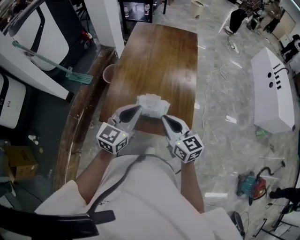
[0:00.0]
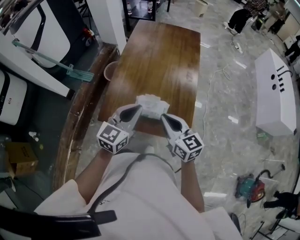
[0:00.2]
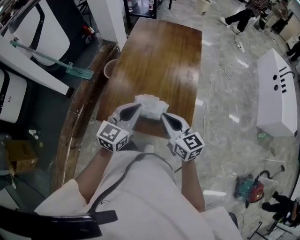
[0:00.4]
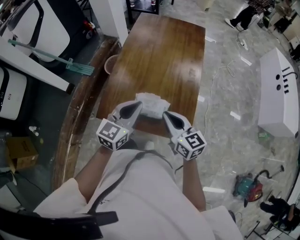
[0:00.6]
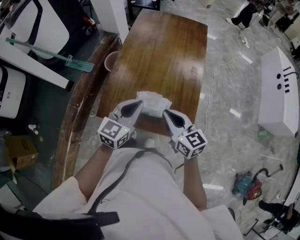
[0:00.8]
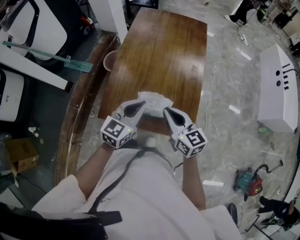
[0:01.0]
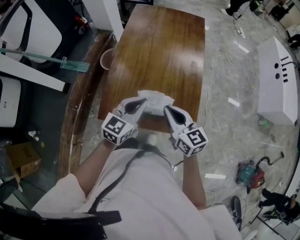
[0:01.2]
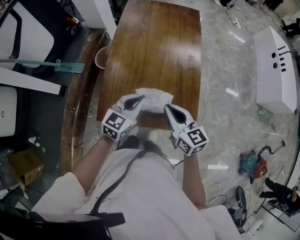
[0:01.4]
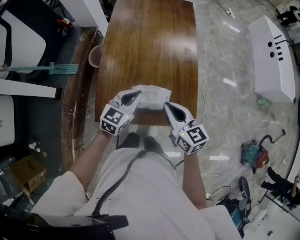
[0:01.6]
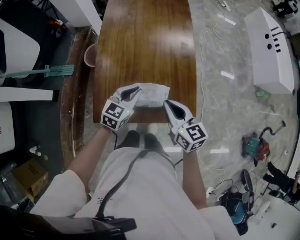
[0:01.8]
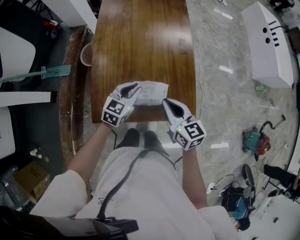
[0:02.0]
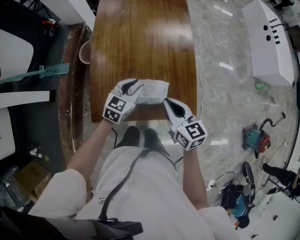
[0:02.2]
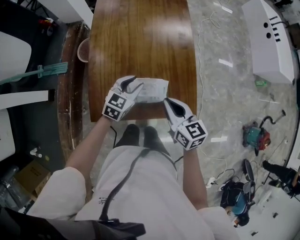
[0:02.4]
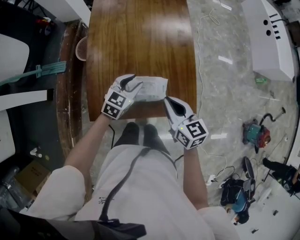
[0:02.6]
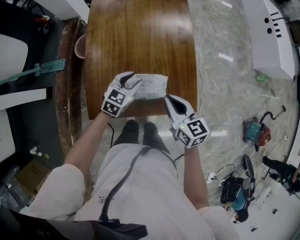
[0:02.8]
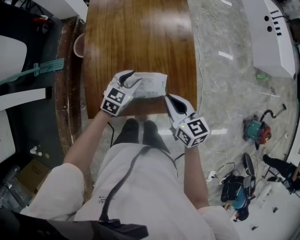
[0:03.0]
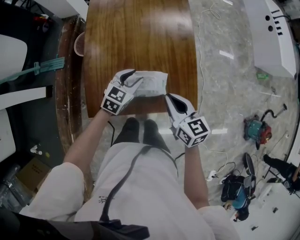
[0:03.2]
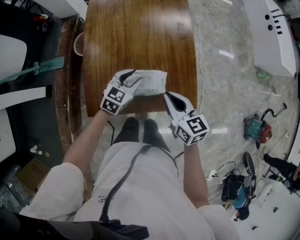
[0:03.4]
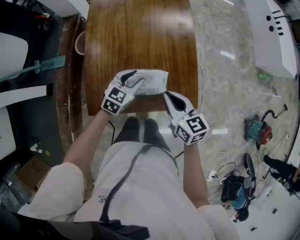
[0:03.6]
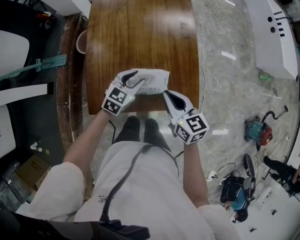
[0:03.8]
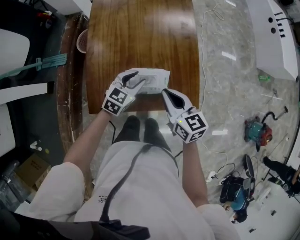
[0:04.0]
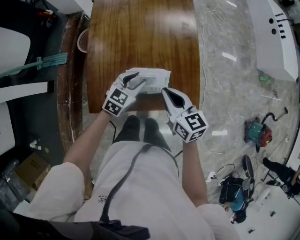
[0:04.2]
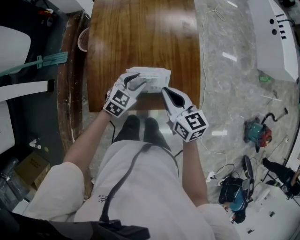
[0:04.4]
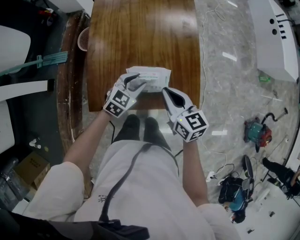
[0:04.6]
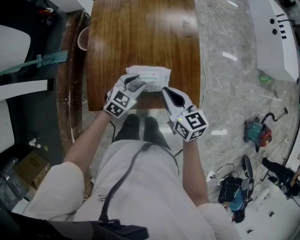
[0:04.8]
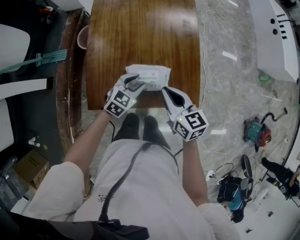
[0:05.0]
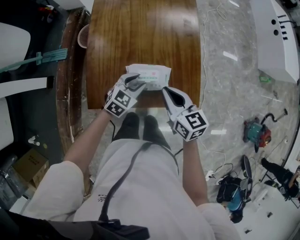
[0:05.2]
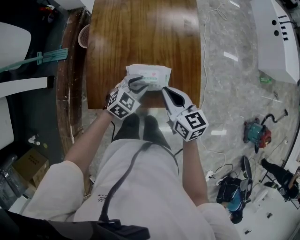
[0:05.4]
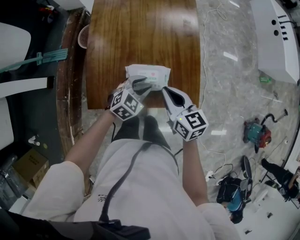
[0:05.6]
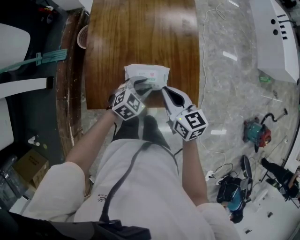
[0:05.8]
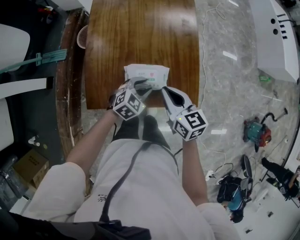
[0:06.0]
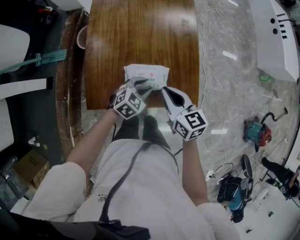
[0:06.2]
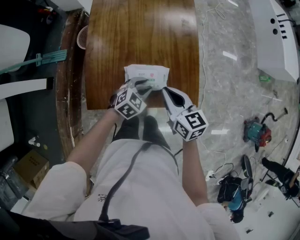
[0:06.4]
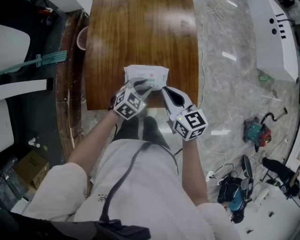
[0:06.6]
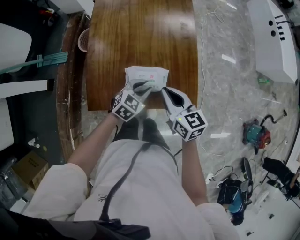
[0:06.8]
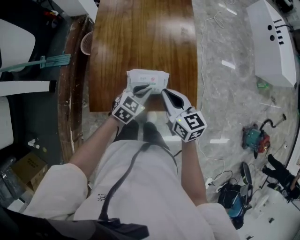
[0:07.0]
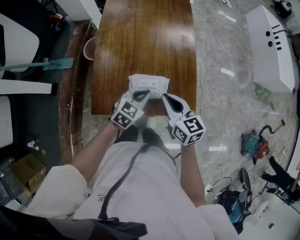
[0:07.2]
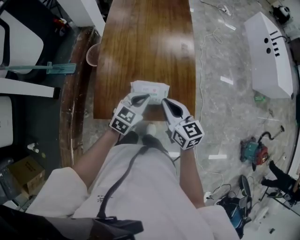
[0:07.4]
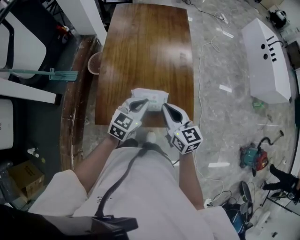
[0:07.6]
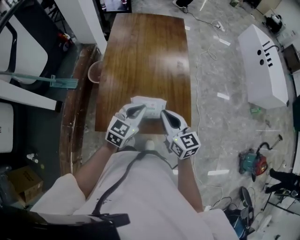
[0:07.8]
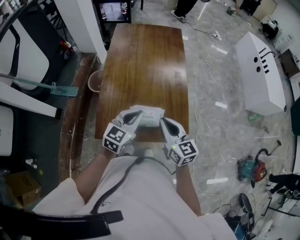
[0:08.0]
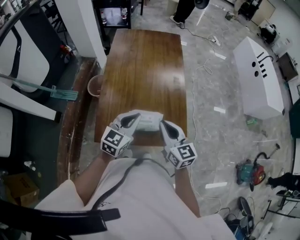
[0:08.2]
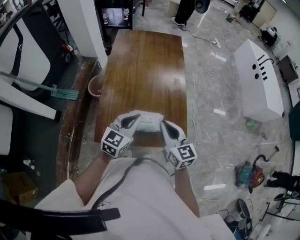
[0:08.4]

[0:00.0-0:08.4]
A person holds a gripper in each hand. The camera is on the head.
0:00.0 to 0:01.4: The left gripper travels forward and downward by approximately 15 cm. The right gripper goes about 10 cm forward.
0:01.4 to 0:02.8: The right gripper is displaced downward by approximately 5 cm. The left gripper shifts some 15 cm downward and forward, and opens up.
0:02.8 to 0:04.2: There are only small adjustments of the grippers.
0:04.2 to 0:05.6: The left gripper shifts by some 5 cm.
0:05.6 to 0:07.0: The left gripper closes up.
0:07.0 to 0:08.4: The left gripper heads upward, covering approximately 20 cm, and swivels roughly 20 degrees, while the right gripper shifts some 10 cm upward.

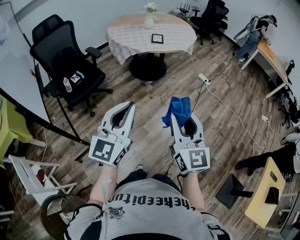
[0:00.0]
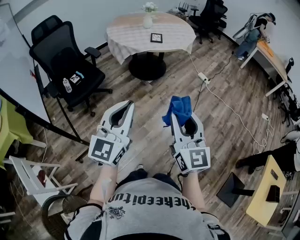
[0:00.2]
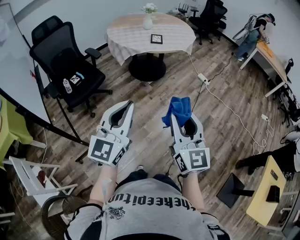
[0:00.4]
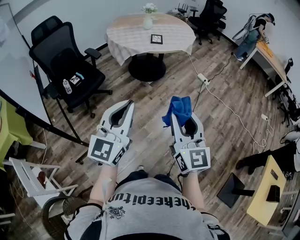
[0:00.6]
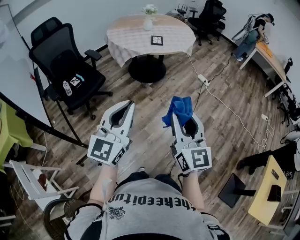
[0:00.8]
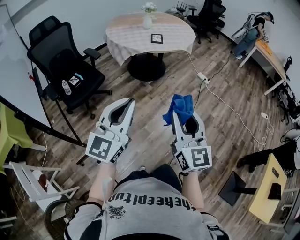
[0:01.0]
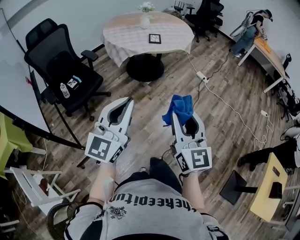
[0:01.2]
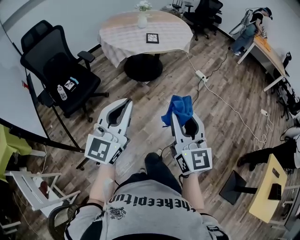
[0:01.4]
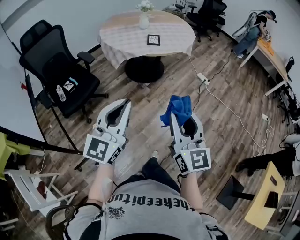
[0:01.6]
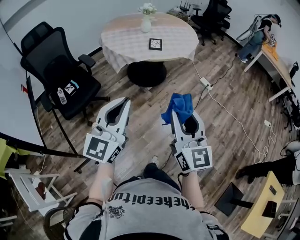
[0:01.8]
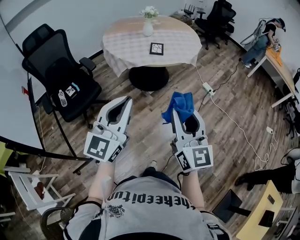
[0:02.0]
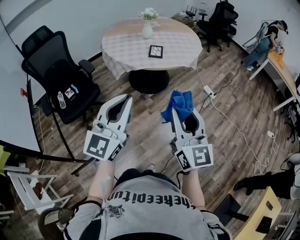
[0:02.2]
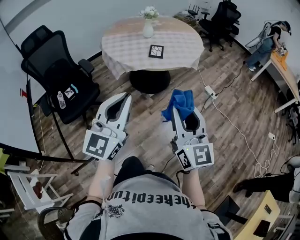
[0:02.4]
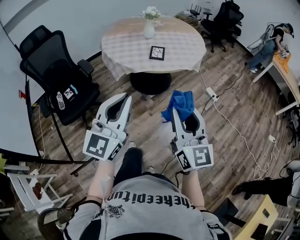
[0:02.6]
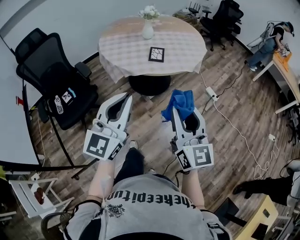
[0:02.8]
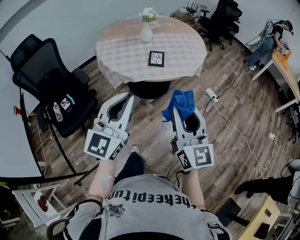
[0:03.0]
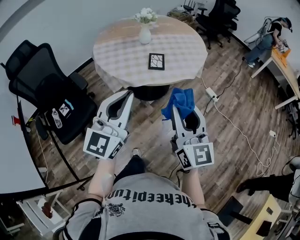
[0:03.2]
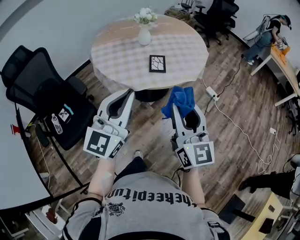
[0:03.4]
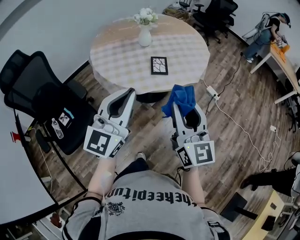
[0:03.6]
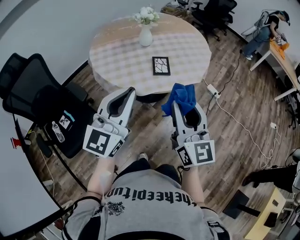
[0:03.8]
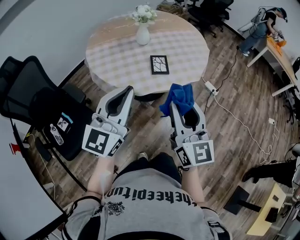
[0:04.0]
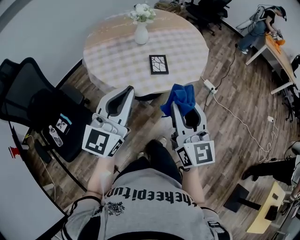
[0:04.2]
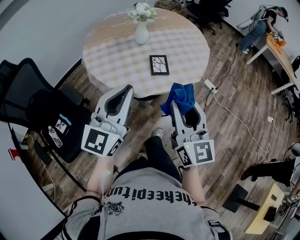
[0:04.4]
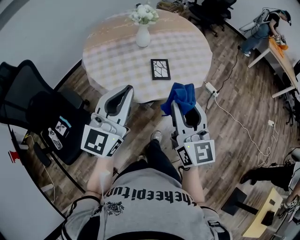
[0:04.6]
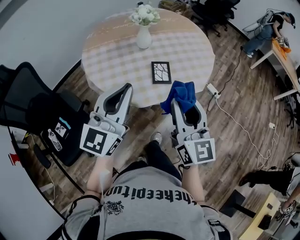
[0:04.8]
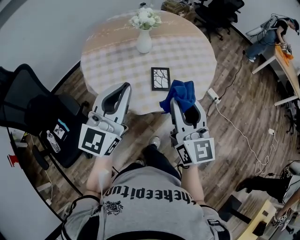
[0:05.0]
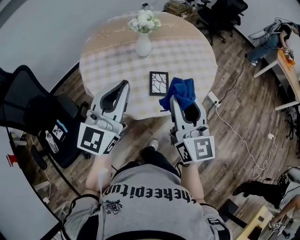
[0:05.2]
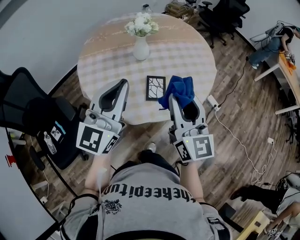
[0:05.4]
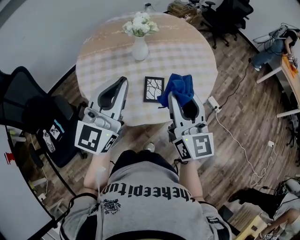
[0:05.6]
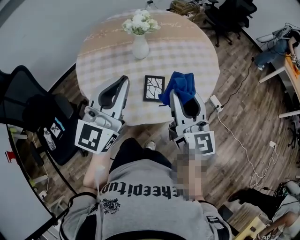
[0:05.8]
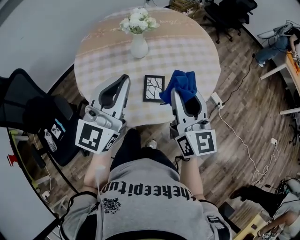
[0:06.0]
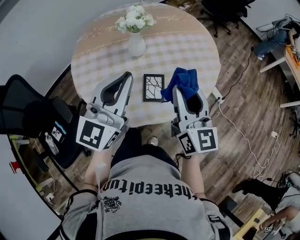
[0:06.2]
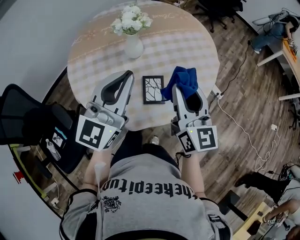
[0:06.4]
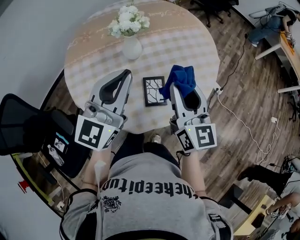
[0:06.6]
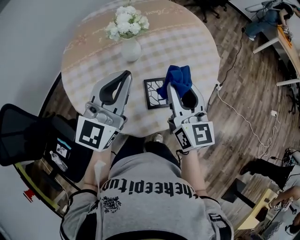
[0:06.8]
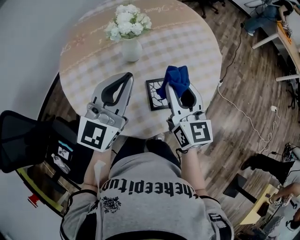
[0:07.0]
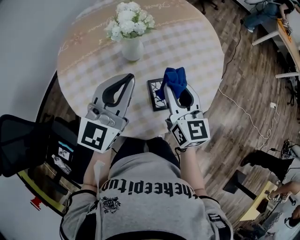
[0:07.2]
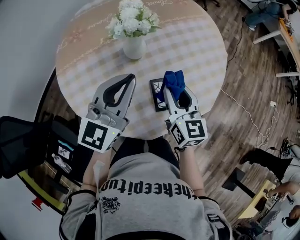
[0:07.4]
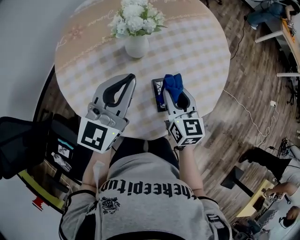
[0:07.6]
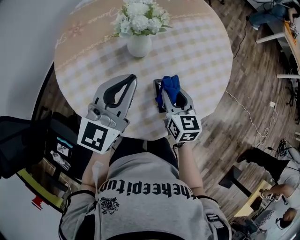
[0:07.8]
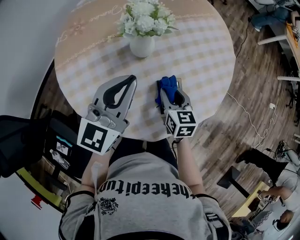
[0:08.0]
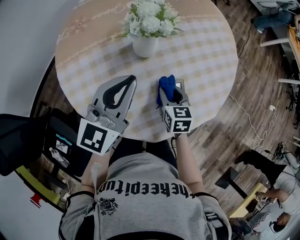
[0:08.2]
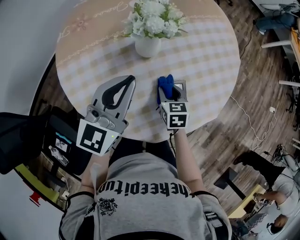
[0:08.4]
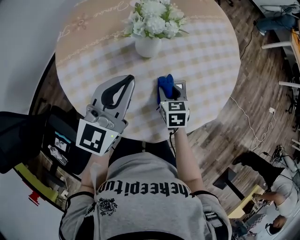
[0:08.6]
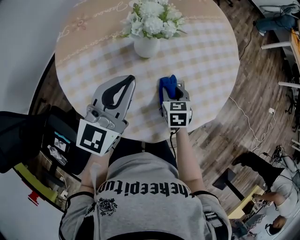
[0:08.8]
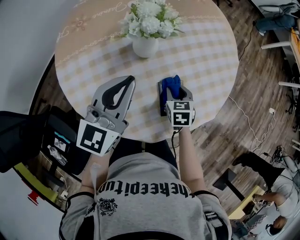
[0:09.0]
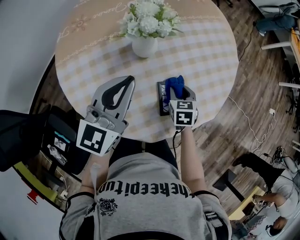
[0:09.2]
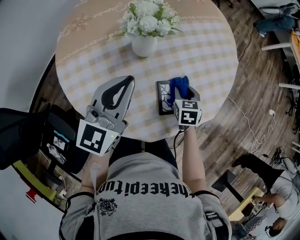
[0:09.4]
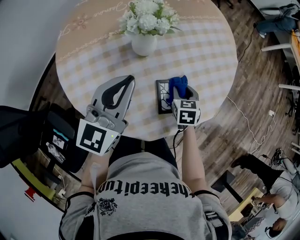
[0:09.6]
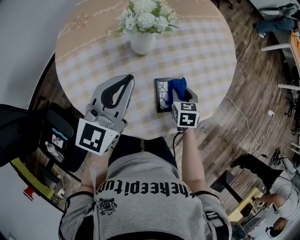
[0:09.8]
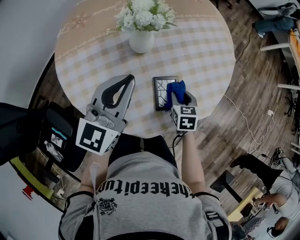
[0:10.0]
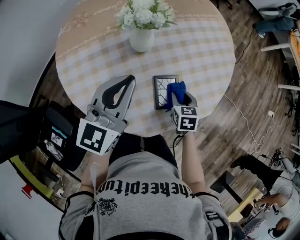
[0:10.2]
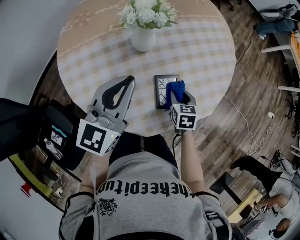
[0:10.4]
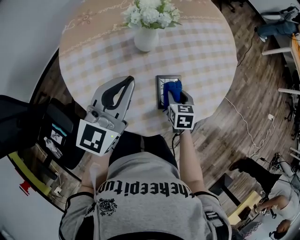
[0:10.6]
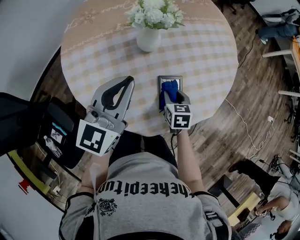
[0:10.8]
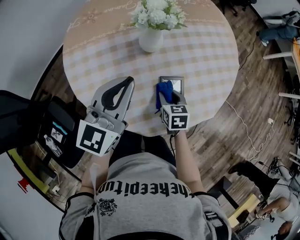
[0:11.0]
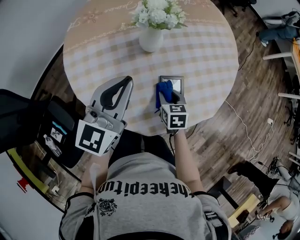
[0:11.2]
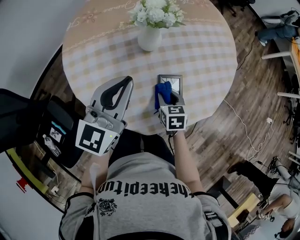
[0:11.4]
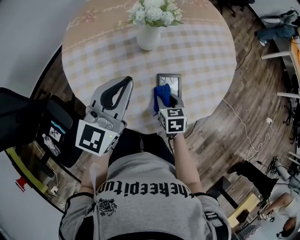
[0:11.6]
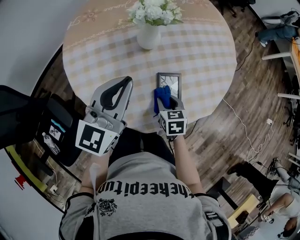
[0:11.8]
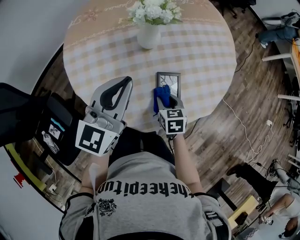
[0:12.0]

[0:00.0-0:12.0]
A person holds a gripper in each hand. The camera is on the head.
0:00.0 to 0:01.6: The two grippers go some 10 cm forward.
0:01.6 to 0:03.0: Both grippers move forward, about 30 cm.
0:03.0 to 0:04.4: The grippers both shift forward and to the left by about 20 cm.
0:04.4 to 0:06.0: Both grippers travel together forward, approximately 25 cm.
0:06.0 to 0:07.6: The right gripper shifts roughly 25 cm downward, forward and to the left, and swivels approximately 30 degrees. The left gripper is displaced forward, downward and to the left by roughly 20 cm, and turns by some 20 degrees.
0:07.6 to 0:09.0: The right gripper is displaced downward by some 15 cm, and angles its fingers downward, by some 30 degrees.
0:09.0 to 0:10.4: The right gripper ends up about 5 cm from where it was.
0:10.4 to 0:12.0: The right gripper moves to the left and backward, approximately 10 cm.

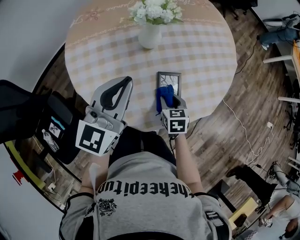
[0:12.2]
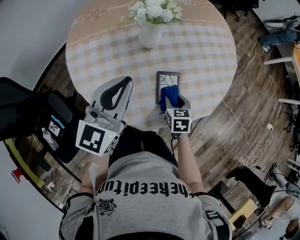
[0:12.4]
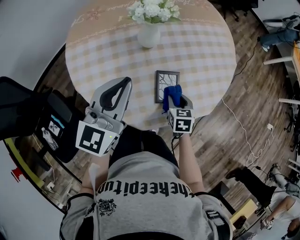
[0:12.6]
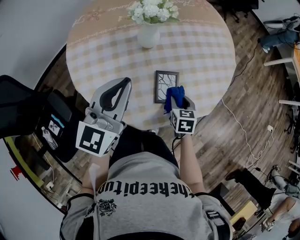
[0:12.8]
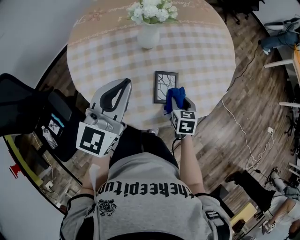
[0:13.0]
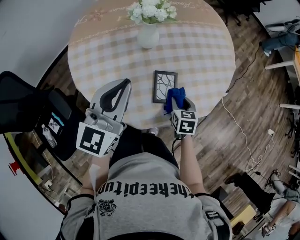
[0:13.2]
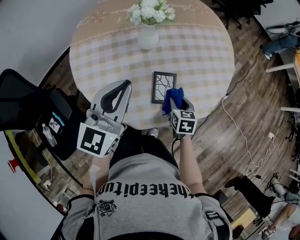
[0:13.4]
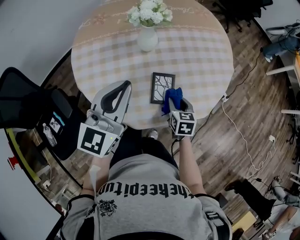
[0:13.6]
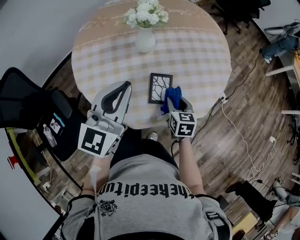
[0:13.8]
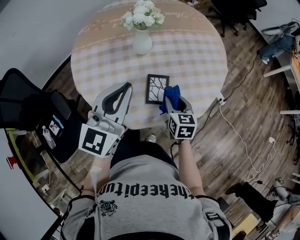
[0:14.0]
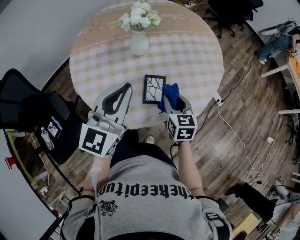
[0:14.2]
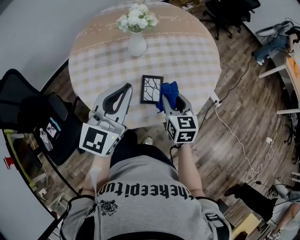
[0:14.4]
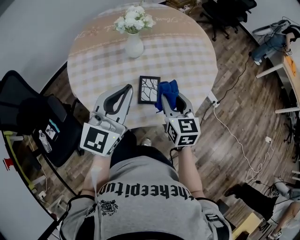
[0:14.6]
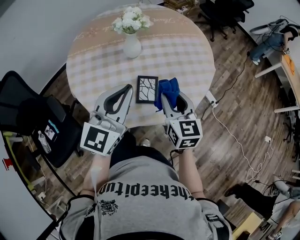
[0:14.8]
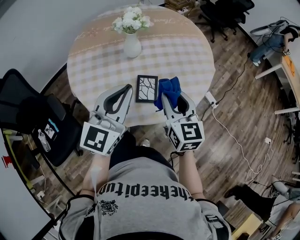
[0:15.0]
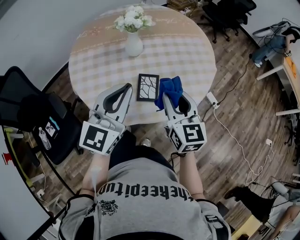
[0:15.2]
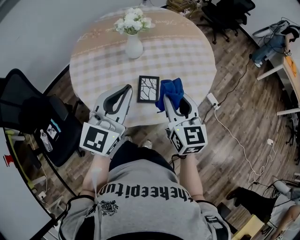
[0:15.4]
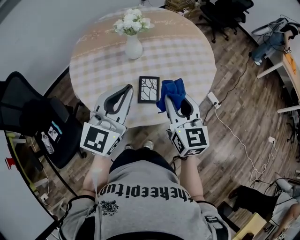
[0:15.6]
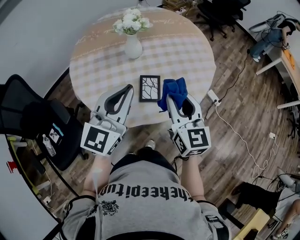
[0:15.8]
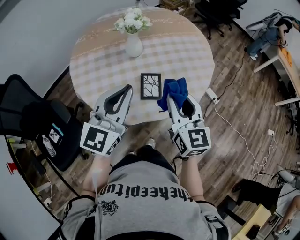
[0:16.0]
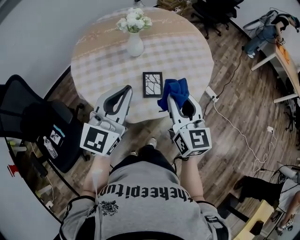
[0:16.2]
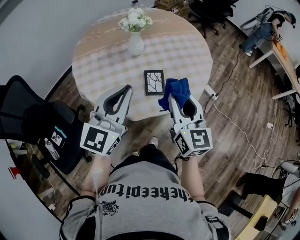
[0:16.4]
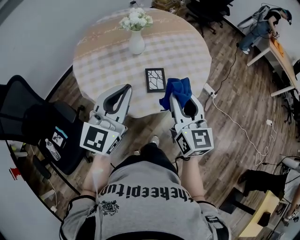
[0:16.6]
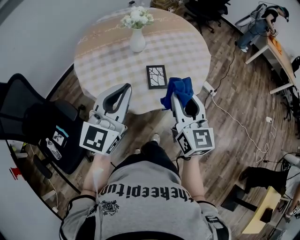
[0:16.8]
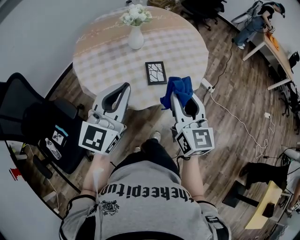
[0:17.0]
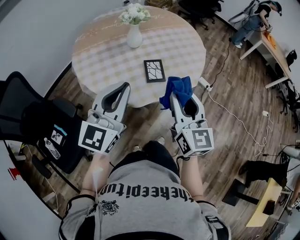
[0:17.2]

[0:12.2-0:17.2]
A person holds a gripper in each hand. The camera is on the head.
0:12.2 to 0:13.8: Both grippers move to the right, approximately 5 cm.
0:13.8 to 0:15.6: The left gripper heads to the right, covering roughly 5 cm. The right gripper shifts roughly 20 cm upward, and changes its angle by roughly 30 degrees.
0:15.6 to 0:17.2: The left gripper shifts some 15 cm backward and to the left; the right gripper heads backward, covering some 15 cm.
